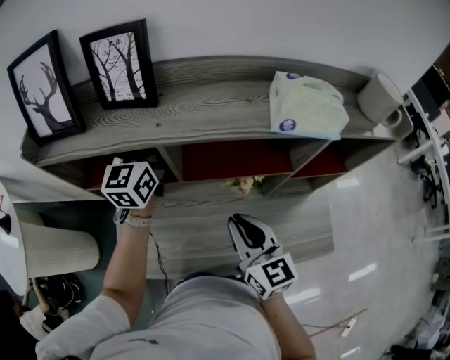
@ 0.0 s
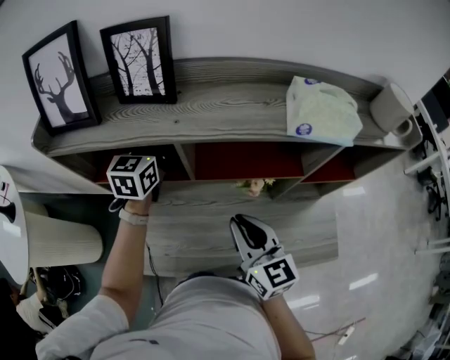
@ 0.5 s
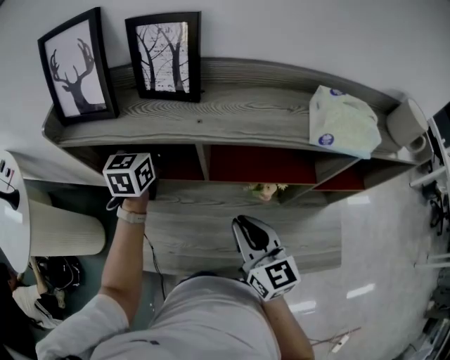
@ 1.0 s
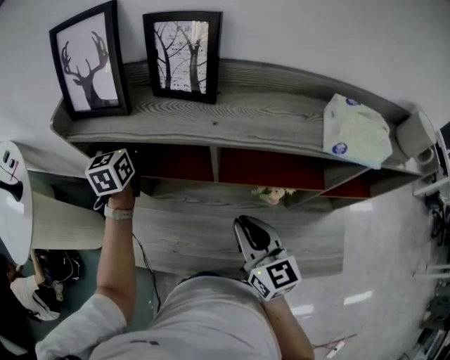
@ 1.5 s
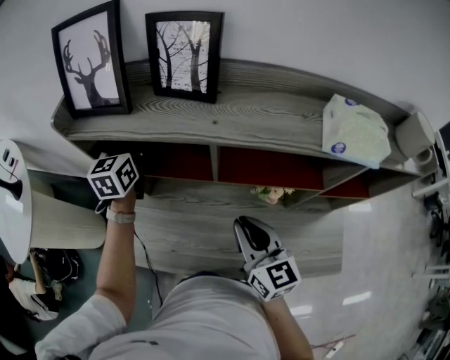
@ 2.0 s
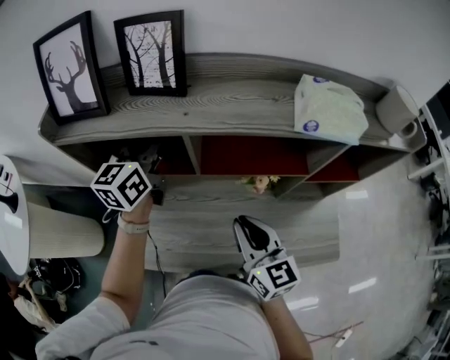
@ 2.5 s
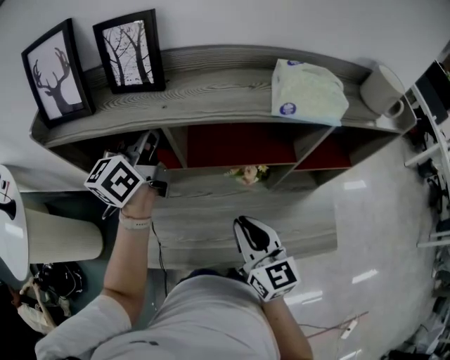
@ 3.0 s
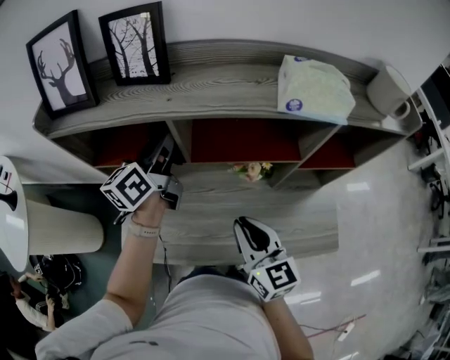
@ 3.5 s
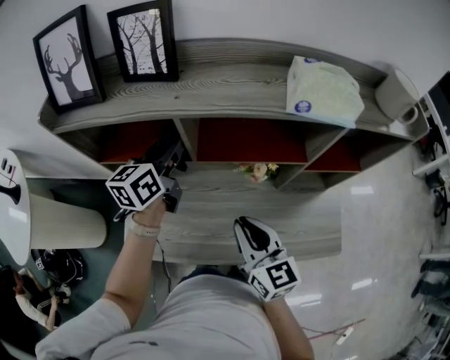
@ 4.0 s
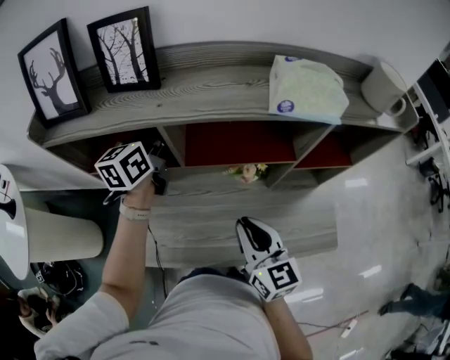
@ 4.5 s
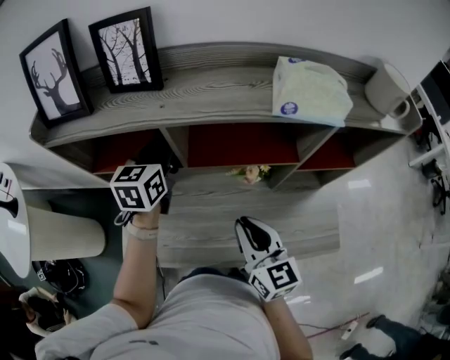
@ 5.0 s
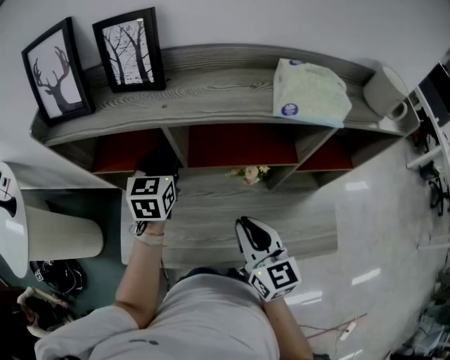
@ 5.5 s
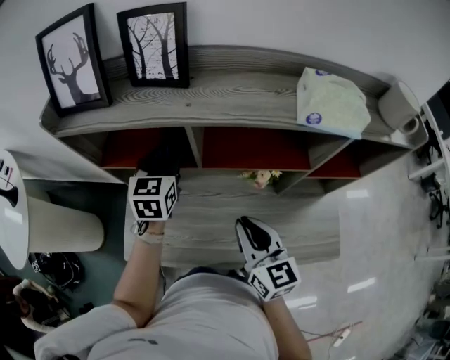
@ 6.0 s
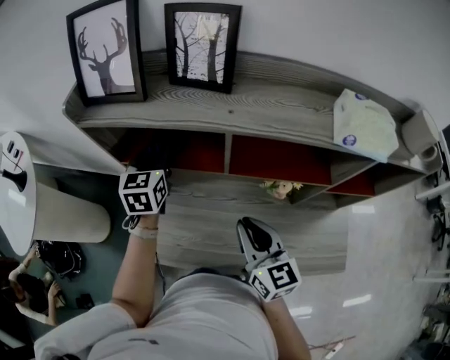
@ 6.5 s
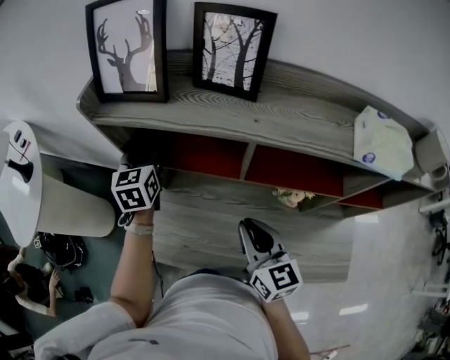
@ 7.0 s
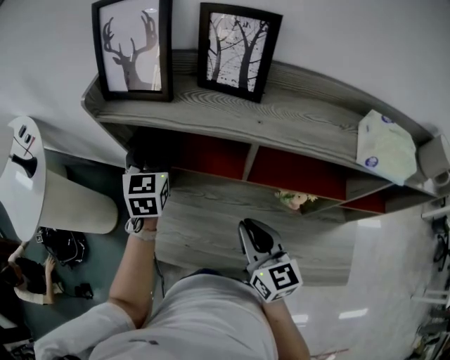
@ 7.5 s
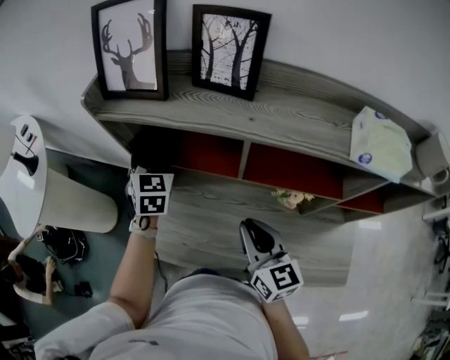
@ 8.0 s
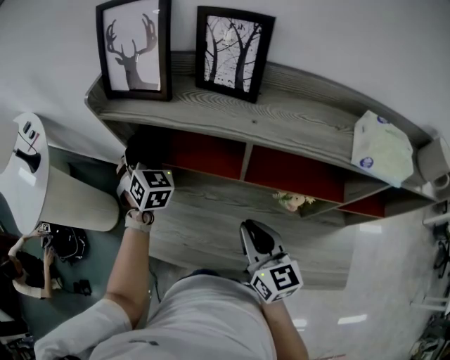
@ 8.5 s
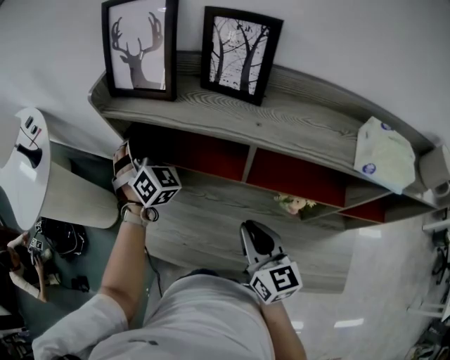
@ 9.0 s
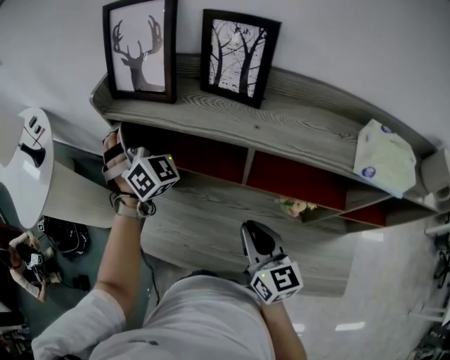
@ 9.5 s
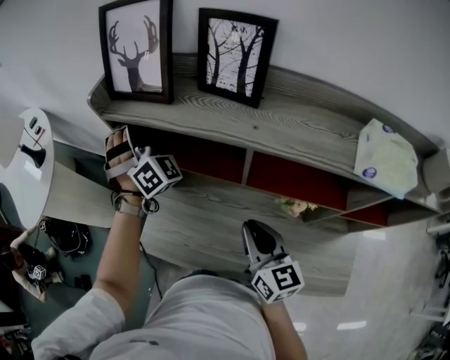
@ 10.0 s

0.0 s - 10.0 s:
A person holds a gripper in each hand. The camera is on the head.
0.0 s - 2.0 s: The right gripper goes about 5 cm to the left. The left gripper heads to the left, covering about 20 cm, and turns by approximately 20 degrees.
2.0 s - 4.0 s: The left gripper is displaced to the right and backward by about 20 cm, and turns by roughly 30 degrees, while the right gripper travels backward by approximately 5 cm.
4.0 s - 6.0 s: The left gripper moves approximately 5 cm, and turns by roughly 30 degrees.
6.0 s - 8.0 s: The left gripper goes some 15 cm to the left, and changes its angle by about 20 degrees. Meanwhile the right gripper moves to the left, some 5 cm.
8.0 s - 10.0 s: The left gripper shifts roughly 10 cm upward, and rotates around the line of its fingers by some 50 degrees, clockwise from behind.

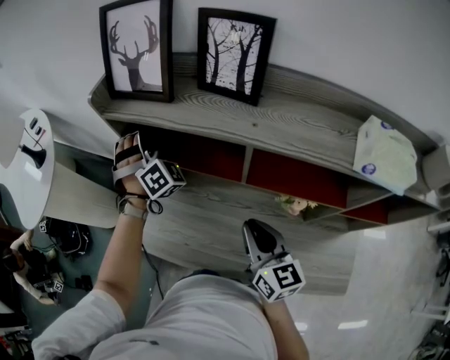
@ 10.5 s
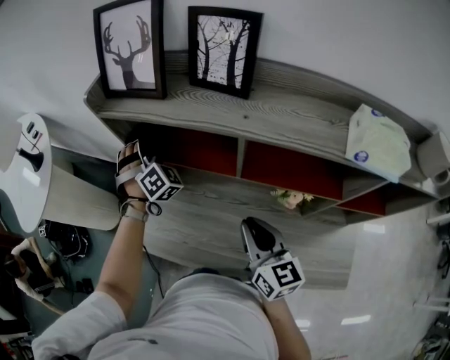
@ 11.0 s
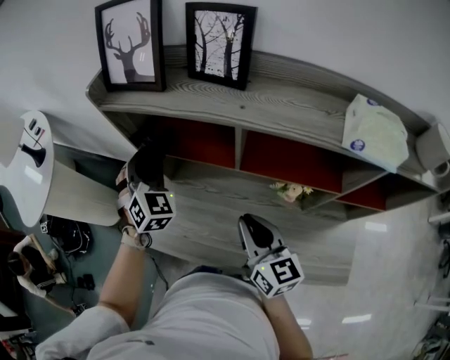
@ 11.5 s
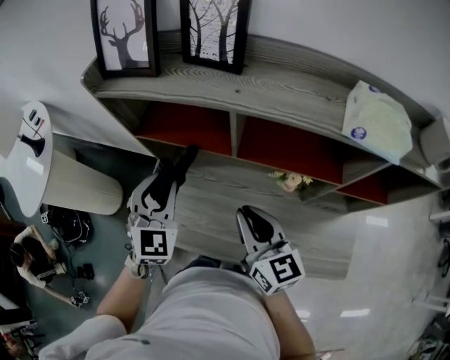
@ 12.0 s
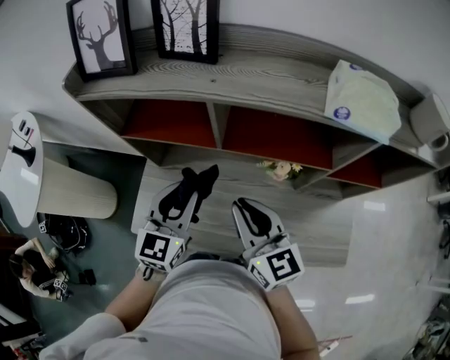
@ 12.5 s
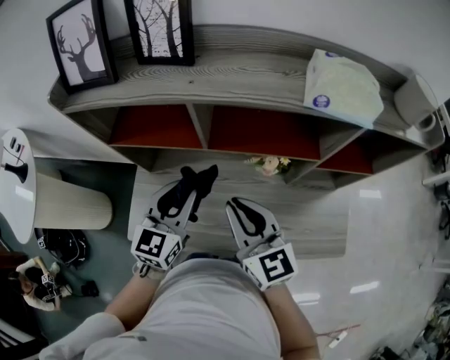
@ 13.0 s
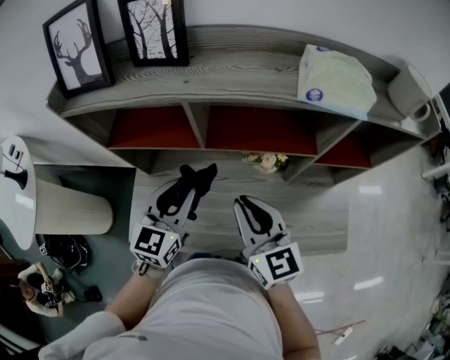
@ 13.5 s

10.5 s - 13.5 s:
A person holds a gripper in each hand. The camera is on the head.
10.5 s - 12.0 s: The left gripper is displaced backward by approximately 20 cm, and rotates roughly 50 degrees.
12.0 s - 13.5 s: The right gripper moves some 5 cm. The left gripper shifts approximately 10 cm to the right, and changes its angle by some 40 degrees.

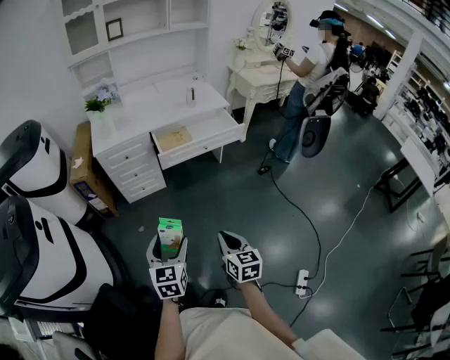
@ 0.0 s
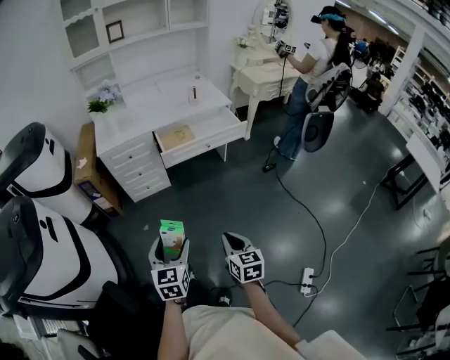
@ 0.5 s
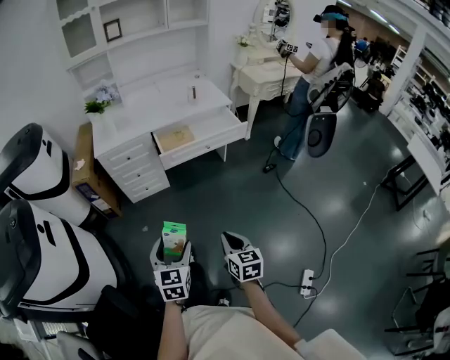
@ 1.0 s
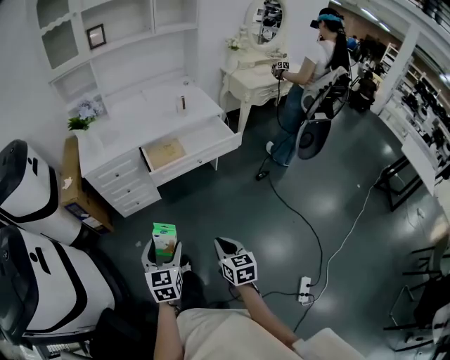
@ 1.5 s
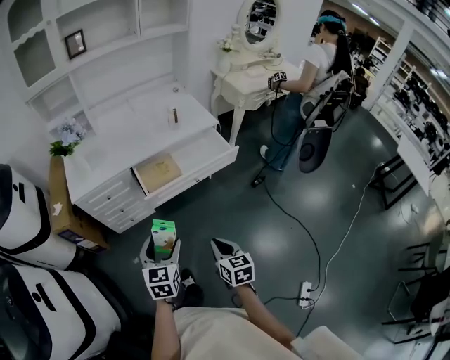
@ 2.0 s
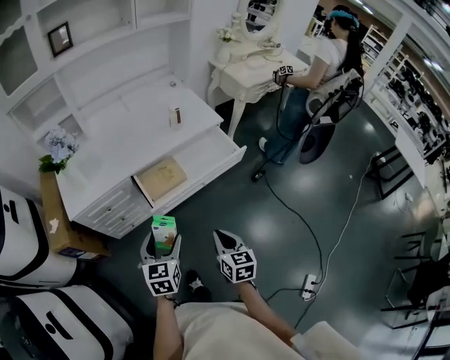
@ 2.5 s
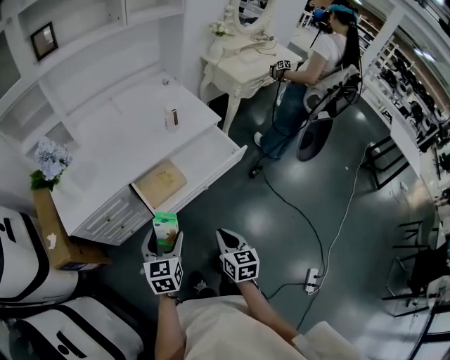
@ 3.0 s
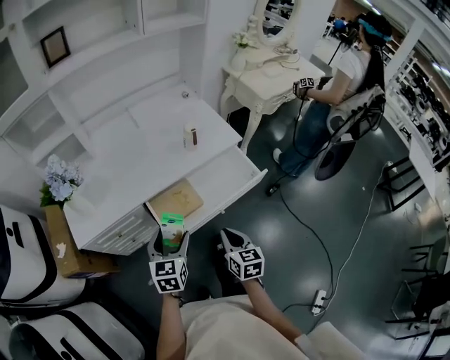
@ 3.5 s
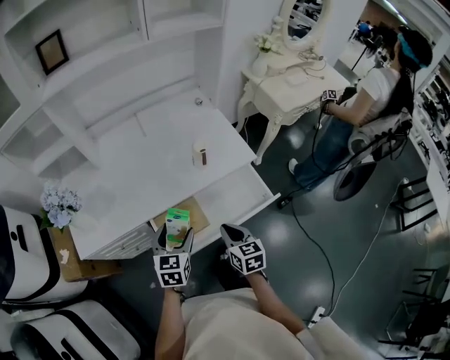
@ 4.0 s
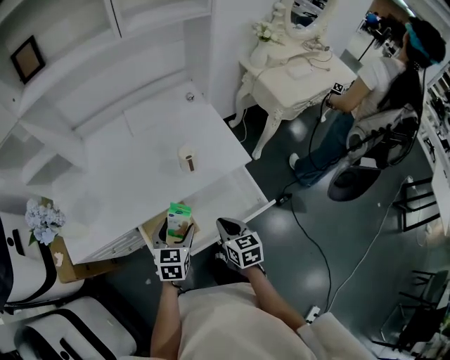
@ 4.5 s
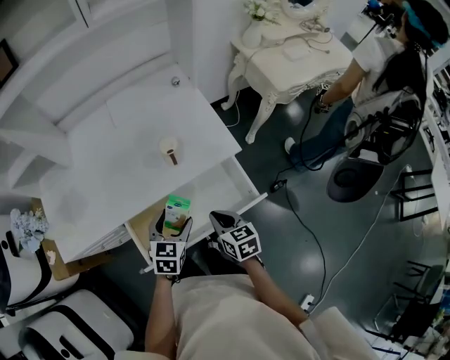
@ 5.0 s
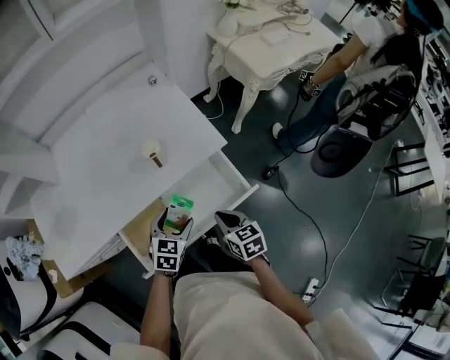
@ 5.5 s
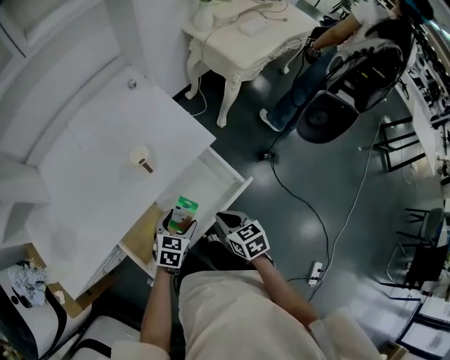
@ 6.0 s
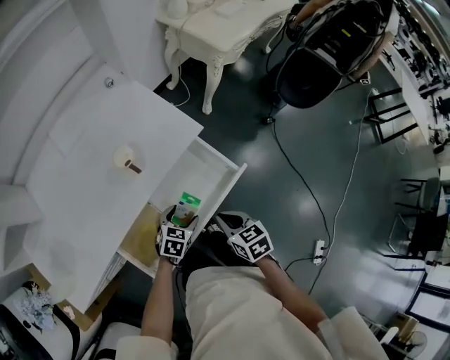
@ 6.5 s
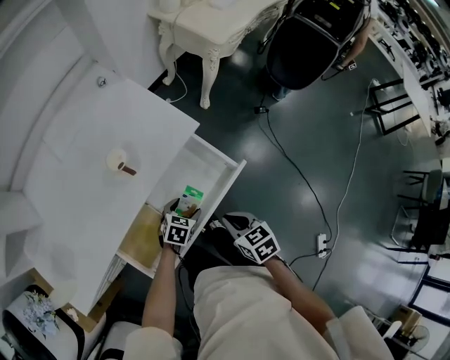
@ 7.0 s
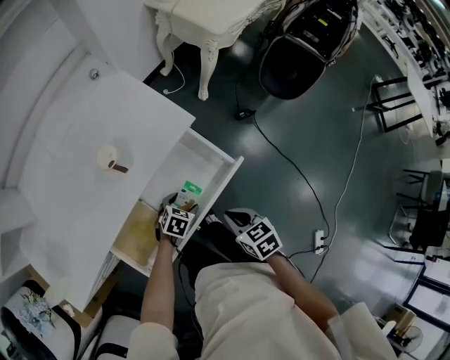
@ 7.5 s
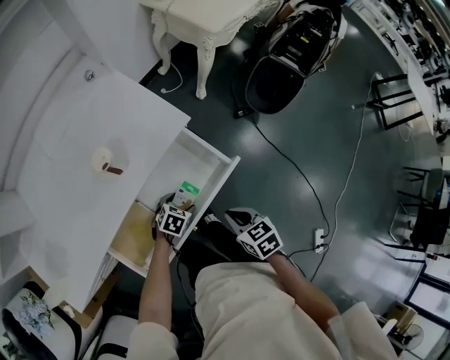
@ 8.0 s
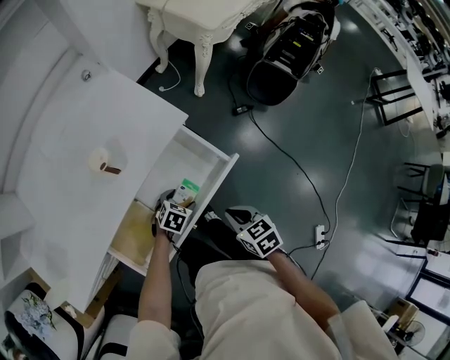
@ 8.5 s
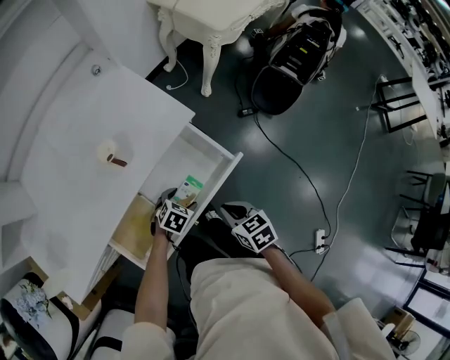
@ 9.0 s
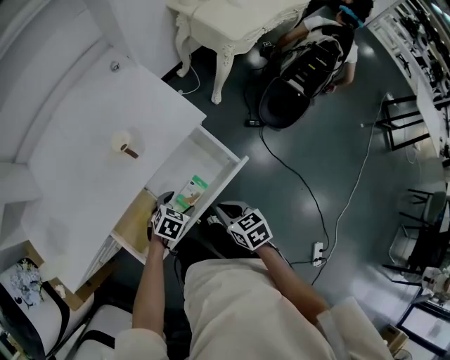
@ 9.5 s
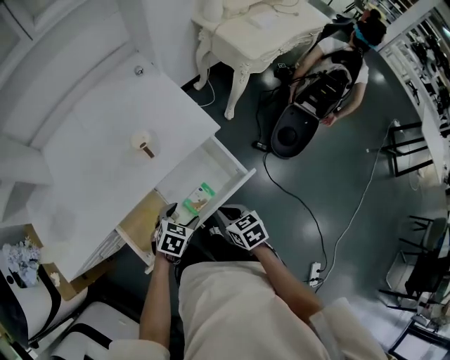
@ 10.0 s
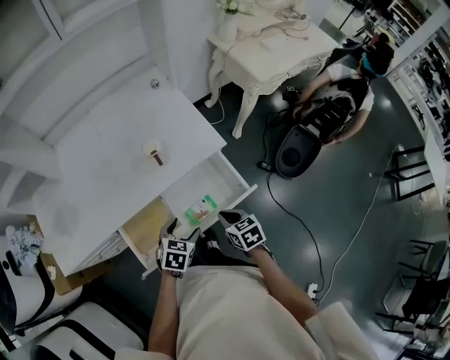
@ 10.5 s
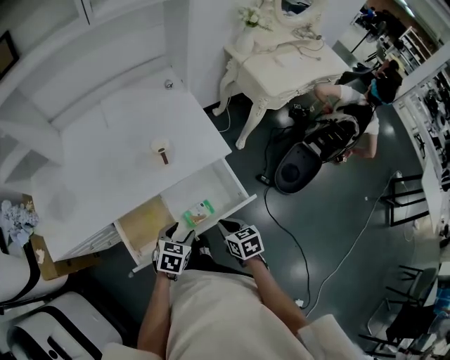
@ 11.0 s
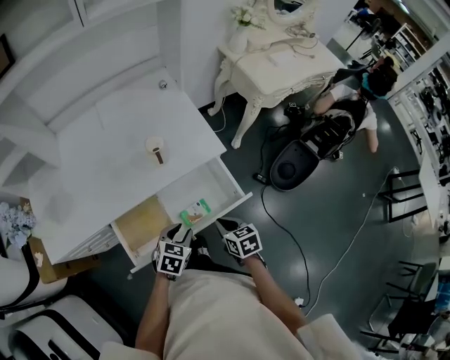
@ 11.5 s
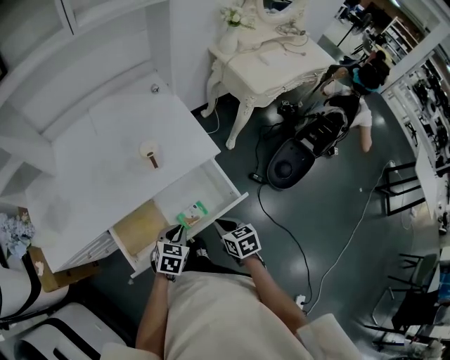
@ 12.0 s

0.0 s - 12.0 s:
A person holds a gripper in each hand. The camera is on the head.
0.0 s - 2.0 s: Both grippers move forward, approximately 25 cm.
2.0 s - 4.0 s: Both grippers are carried forward, some 40 cm.
4.0 s - 6.0 s: The right gripper travels to the right, downward and forward by approximately 15 cm, while the left gripper moves to the right, downward and forward, some 25 cm, and rotates roughly 40 degrees.
6.0 s - 8.0 s: The right gripper is displaced to the right by approximately 10 cm, while the left gripper shifts approximately 15 cm downward and to the right, and changes its angle by roughly 30 degrees.
8.0 s - 10.0 s: The right gripper heads to the left, covering about 5 cm. Meanwhile the left gripper is displaced upward by about 15 cm.
10.0 s - 12.0 s: The left gripper closes up.

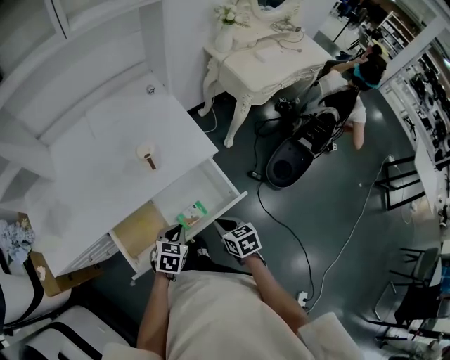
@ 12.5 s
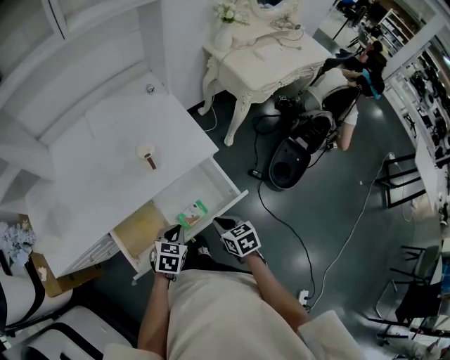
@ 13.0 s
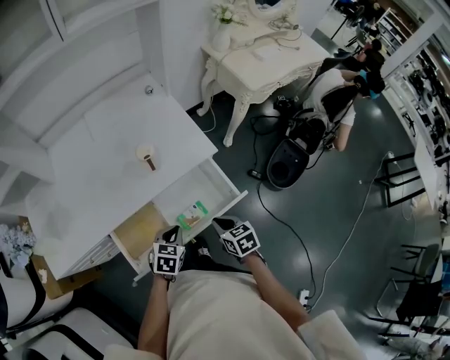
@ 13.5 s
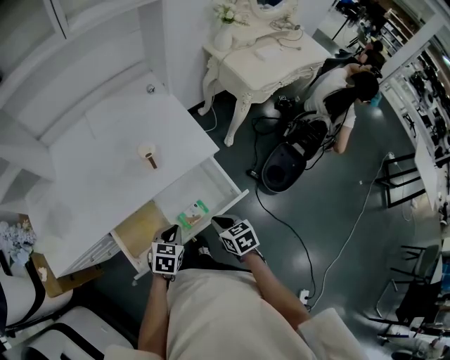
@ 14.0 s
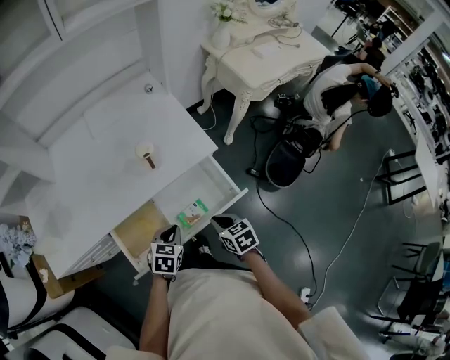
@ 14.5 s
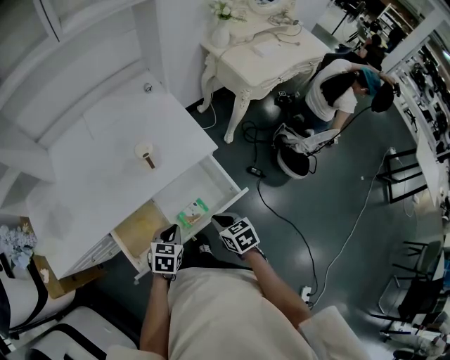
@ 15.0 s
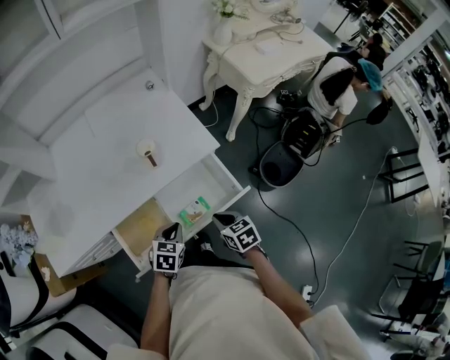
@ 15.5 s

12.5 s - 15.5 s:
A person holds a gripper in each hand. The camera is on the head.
12.5 s - 14.0 s: There are only small adjustments of the grippers.
14.0 s - 15.5 s: Neither gripper changes place.
